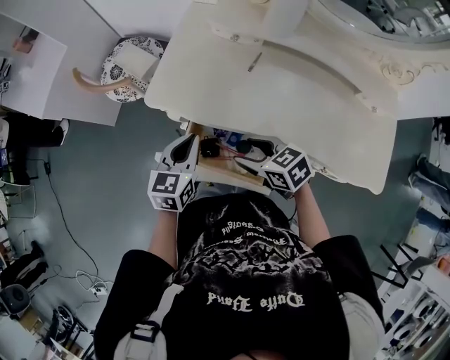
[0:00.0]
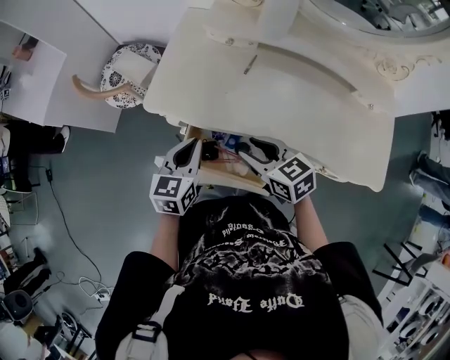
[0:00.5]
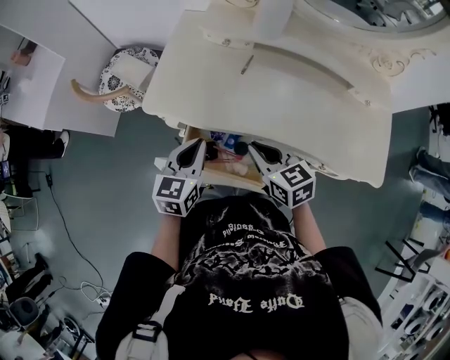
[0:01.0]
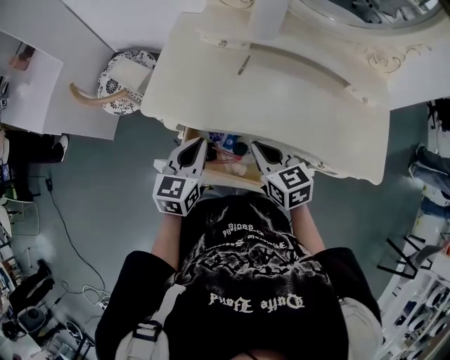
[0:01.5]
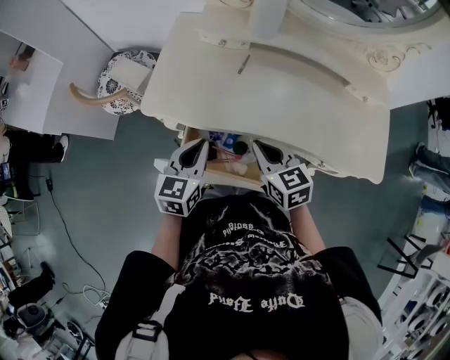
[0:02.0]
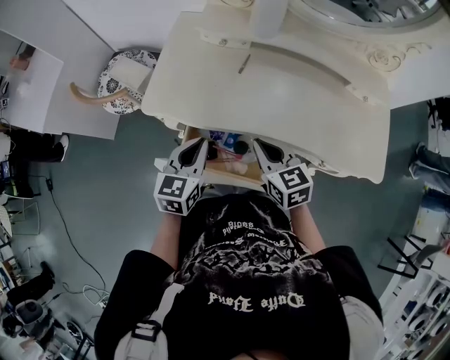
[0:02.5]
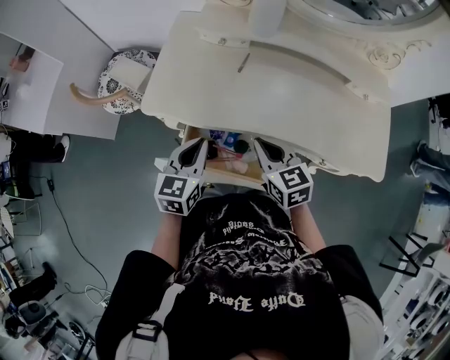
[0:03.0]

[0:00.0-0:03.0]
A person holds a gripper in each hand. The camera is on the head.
0:00.0 to 0:01.5: The right gripper ends up about 5 cm from where it was, swivels about 30 degrees, and closes.
0:01.5 to 0:03.0: Neither gripper changes place.

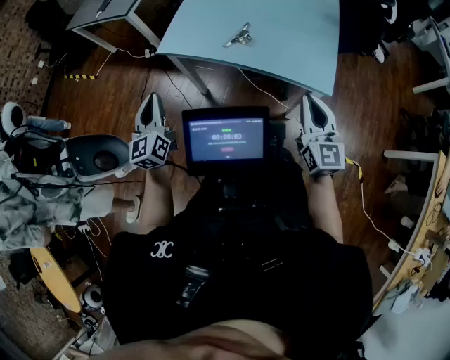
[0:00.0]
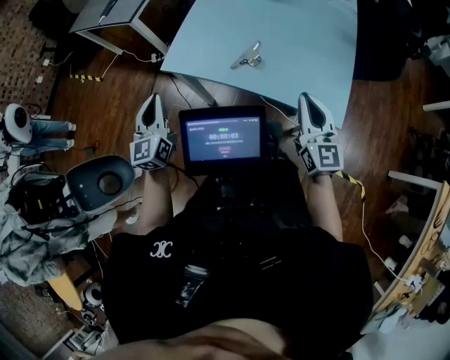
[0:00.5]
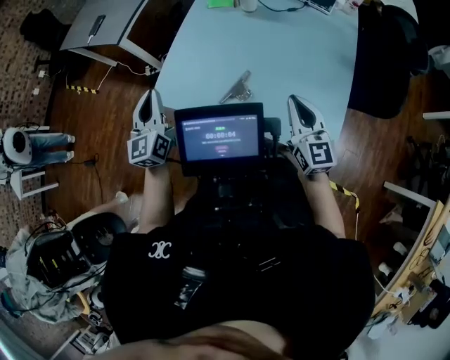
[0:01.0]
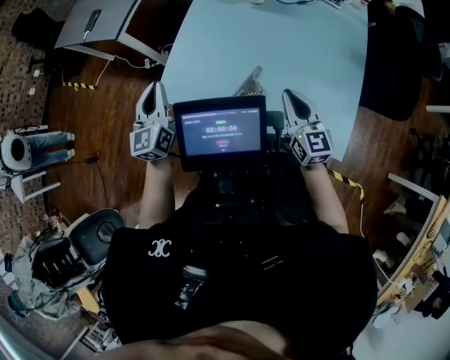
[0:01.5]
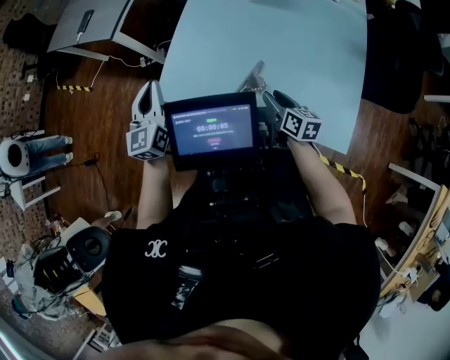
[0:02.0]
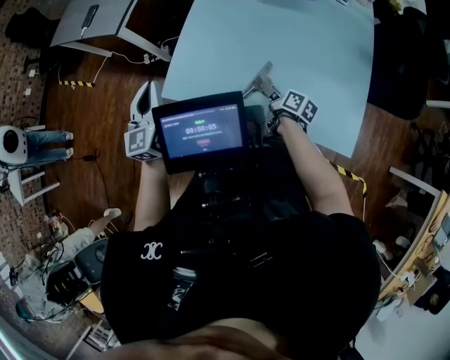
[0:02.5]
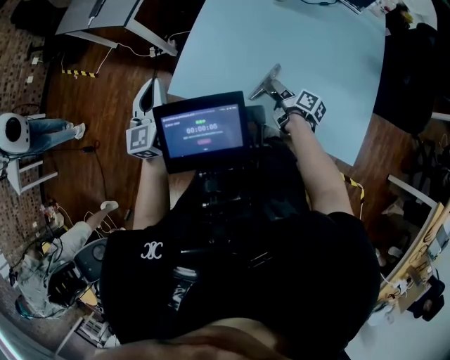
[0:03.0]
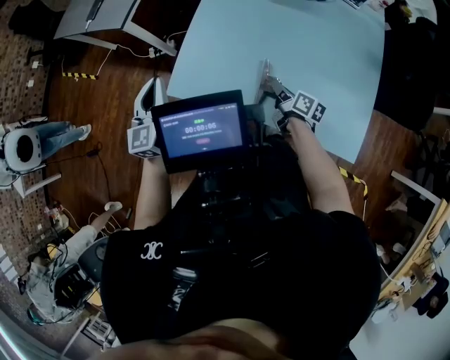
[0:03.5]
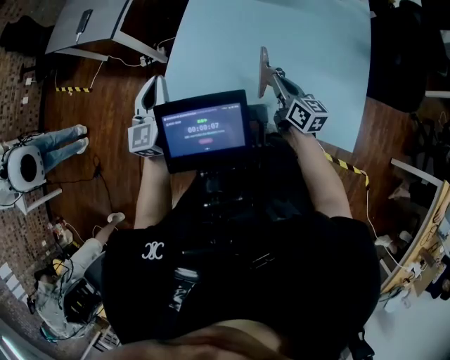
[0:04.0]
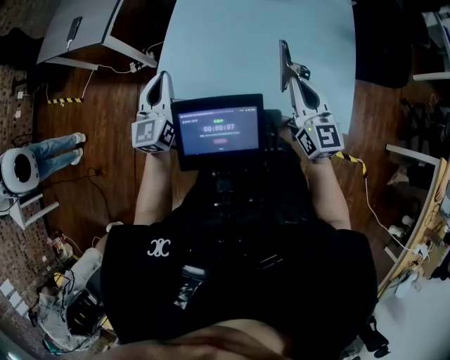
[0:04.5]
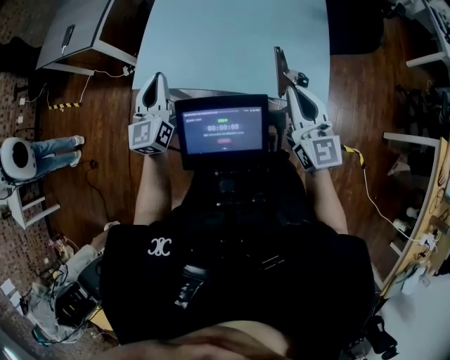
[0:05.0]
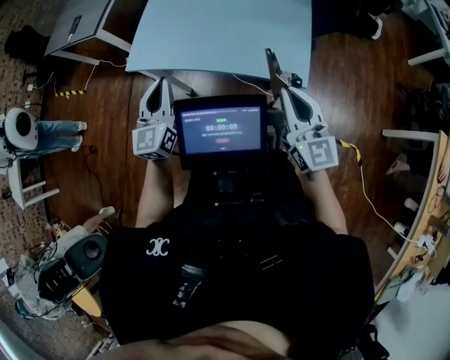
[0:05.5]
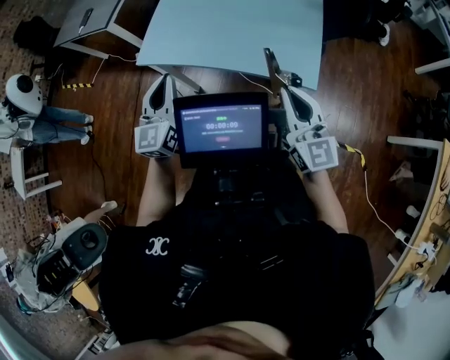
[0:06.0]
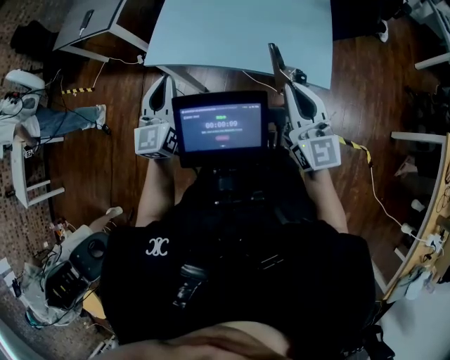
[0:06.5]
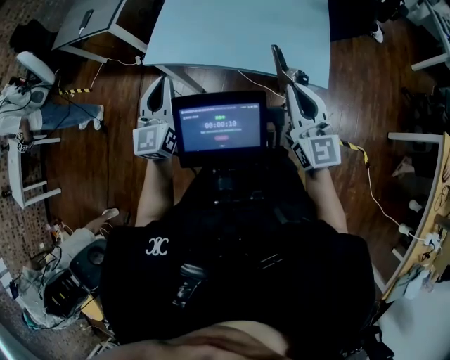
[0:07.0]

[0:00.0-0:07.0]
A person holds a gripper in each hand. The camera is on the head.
0:00.0 to 0:02.0: The right gripper travels forward and downward by roughly 40 cm, swivels about 50 degrees, and opens its fingers. Meanwhile the left gripper travels forward by roughly 30 cm.
0:02.0 to 0:03.5: The right gripper goes some 5 cm forward, swivels some 20 degrees, and closes its fingers.
0:03.5 to 0:05.0: The right gripper moves backward, upward and to the right, roughly 35 cm, and rolls counterclockwise, seen from behind, by approximately 60 degrees. Meanwhile the left gripper heads to the right and backward, covering about 20 cm.
0:05.0 to 0:07.0: Both grippers travel together backward, some 10 cm.

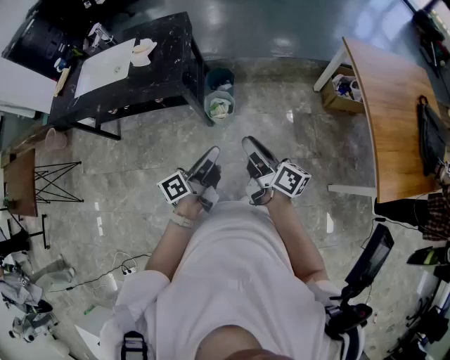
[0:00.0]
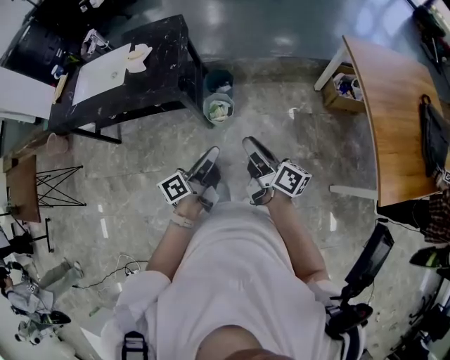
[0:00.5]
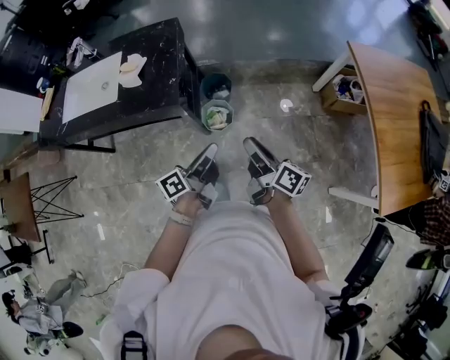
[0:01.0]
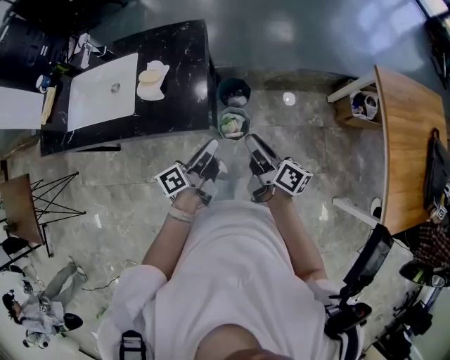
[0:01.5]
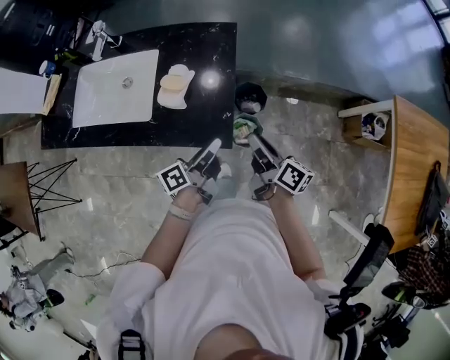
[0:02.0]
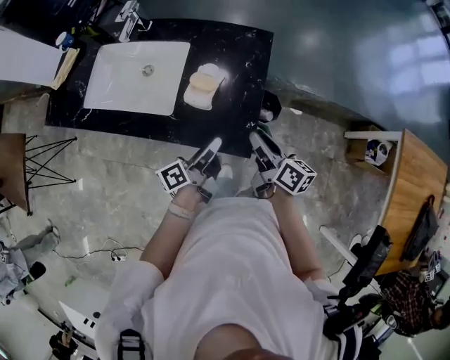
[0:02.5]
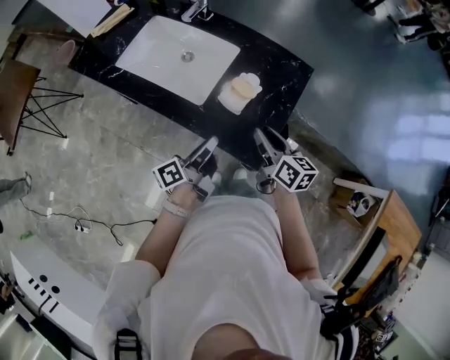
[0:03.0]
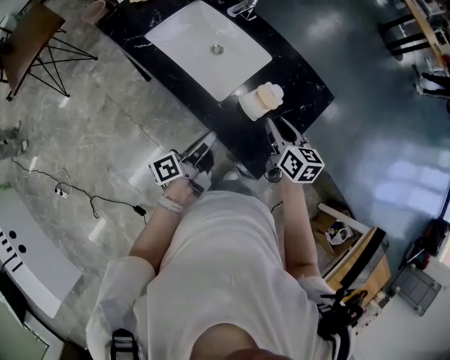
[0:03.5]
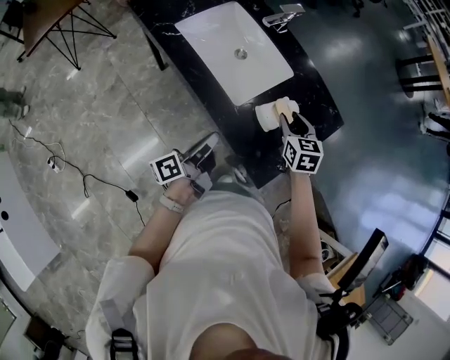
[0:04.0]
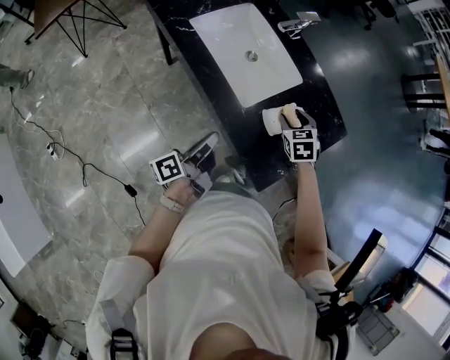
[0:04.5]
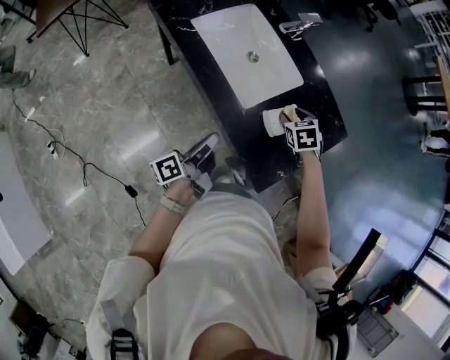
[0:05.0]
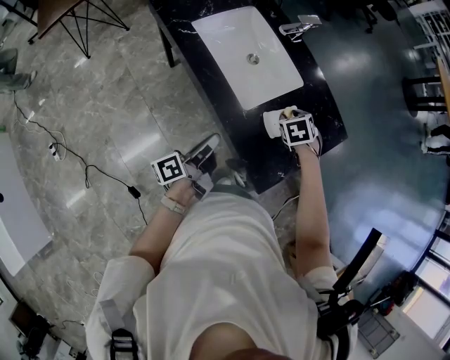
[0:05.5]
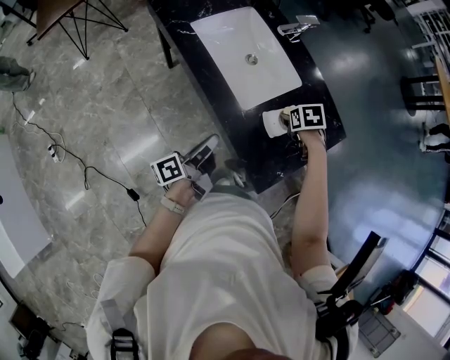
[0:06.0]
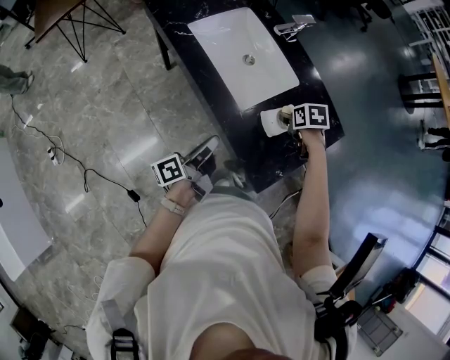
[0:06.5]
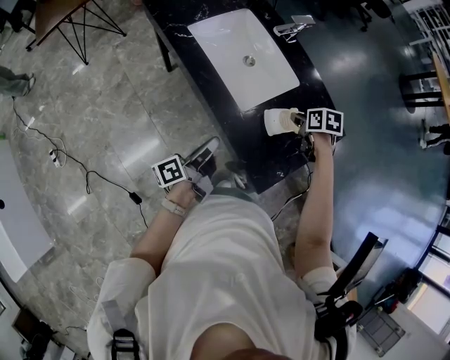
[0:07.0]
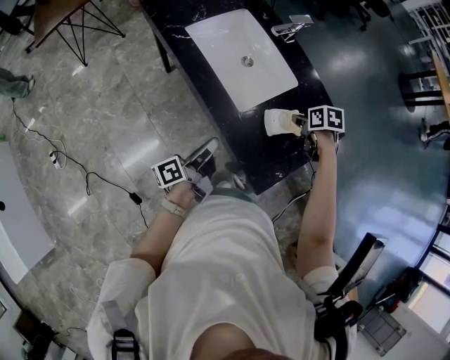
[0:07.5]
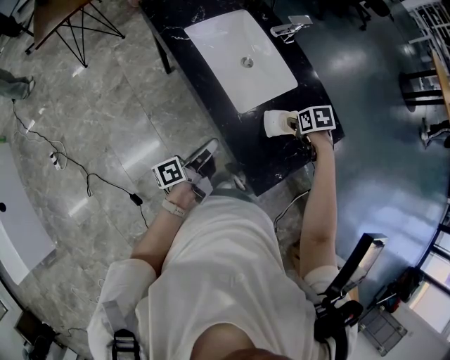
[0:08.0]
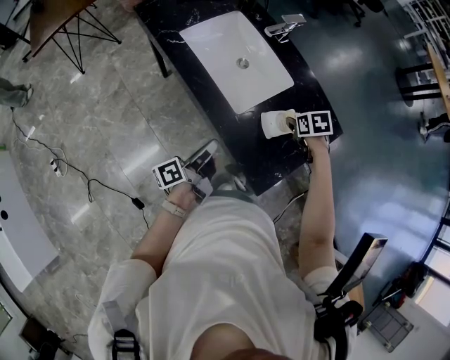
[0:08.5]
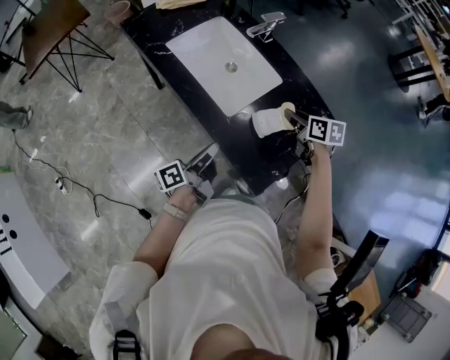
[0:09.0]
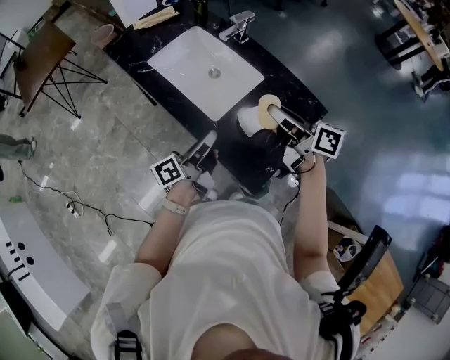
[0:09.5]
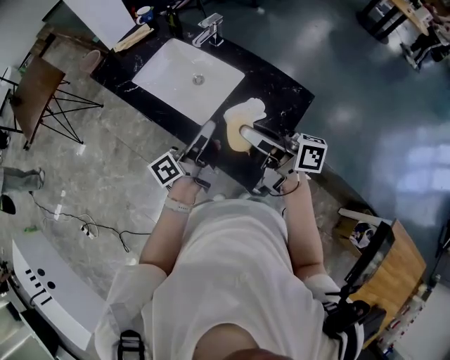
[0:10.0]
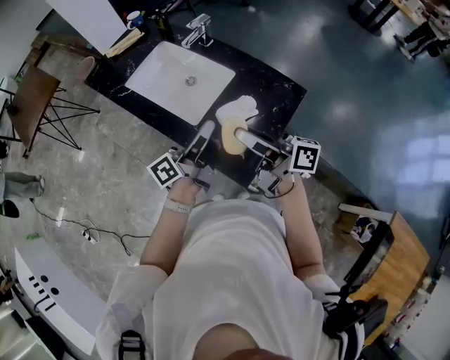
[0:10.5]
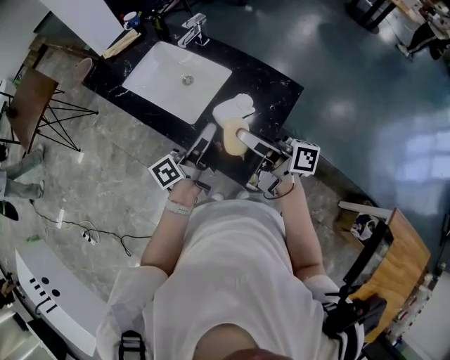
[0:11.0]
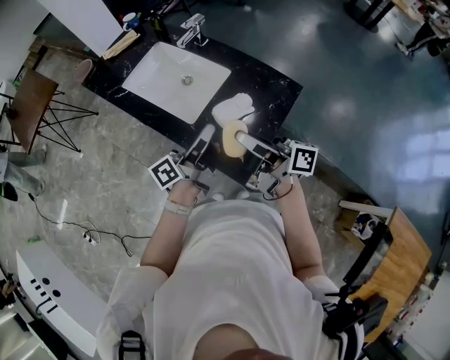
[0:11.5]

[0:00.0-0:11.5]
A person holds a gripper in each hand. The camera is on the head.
0:00.0 to 0:02.0: The right gripper ends up roughly 50 cm from where it was.
0:02.0 to 0:04.0: The right gripper moves approximately 30 cm, and rotates around the line of its fingers by approximately 80 degrees, counterclockwise from behind.
0:04.0 to 0:06.0: The right gripper is displaced downward by about 5 cm, tips its fingers downward by approximately 40 degrees, and opens its fingers.
0:06.0 to 0:07.5: The right gripper closes its fingers.
0:07.5 to 0:09.5: The right gripper heads upward, covering roughly 20 cm, and points its fingers approximately 60 degrees further upward.
0:09.5 to 0:11.5: The right gripper ends up roughly 10 cm from where it was, and changes its angle by some 20 degrees.

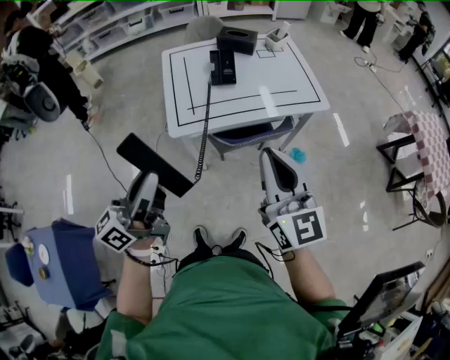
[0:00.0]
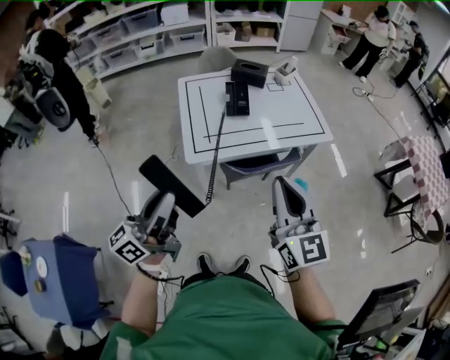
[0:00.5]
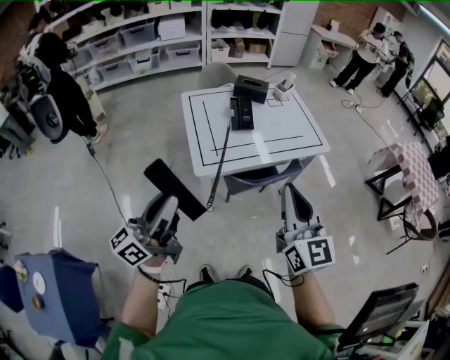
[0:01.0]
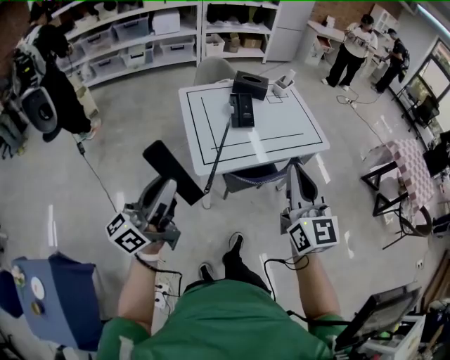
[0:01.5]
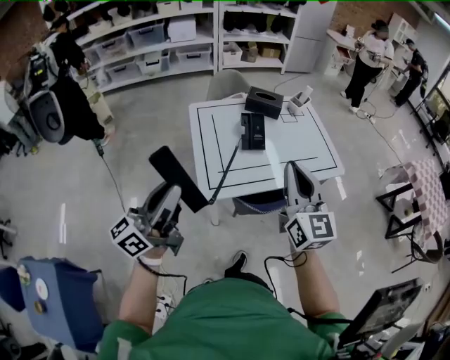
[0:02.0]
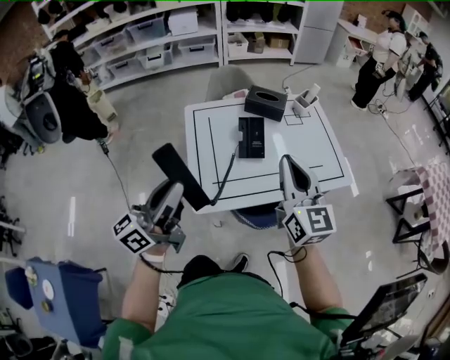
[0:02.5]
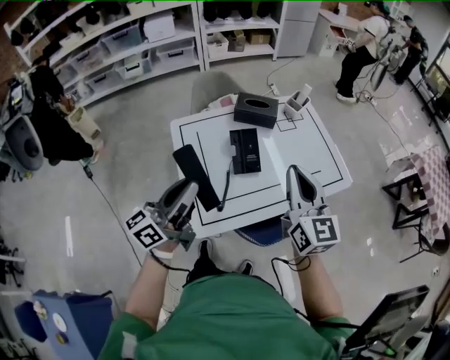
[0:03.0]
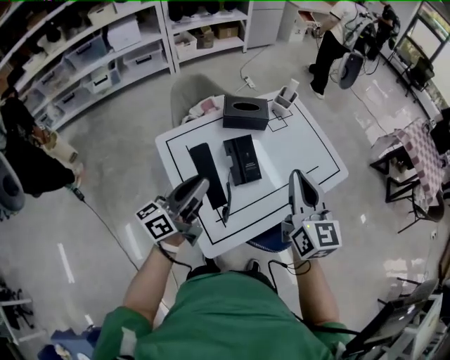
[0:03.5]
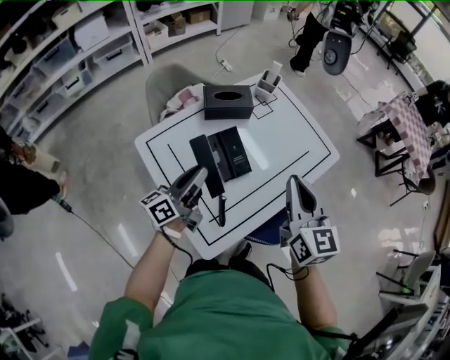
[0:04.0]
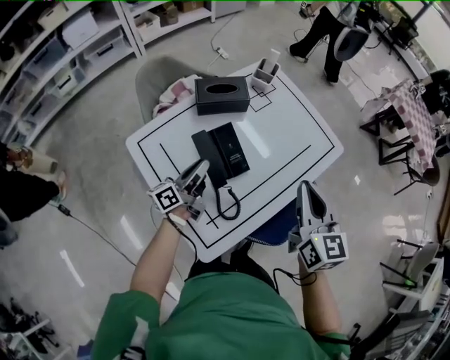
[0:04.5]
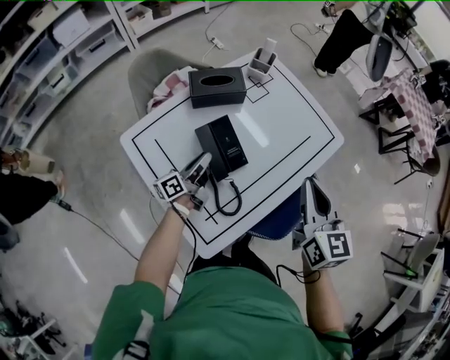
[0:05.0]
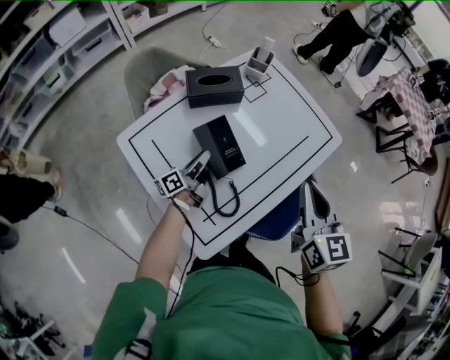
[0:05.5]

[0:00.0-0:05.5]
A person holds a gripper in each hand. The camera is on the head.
0:00.0 to 0:02.0: The right gripper travels forward and to the left by approximately 20 cm; the left gripper goes roughly 20 cm to the left and forward.
0:02.0 to 0:03.5: The right gripper travels forward by some 25 cm, and changes its angle by roughly 20 degrees. The left gripper is displaced forward by about 35 cm, and changes its angle by about 30 degrees.
0:03.5 to 0:05.5: The left gripper travels downward and forward by roughly 30 cm, and swivels about 30 degrees, while the right gripper shifts approximately 10 cm downward and to the right.
